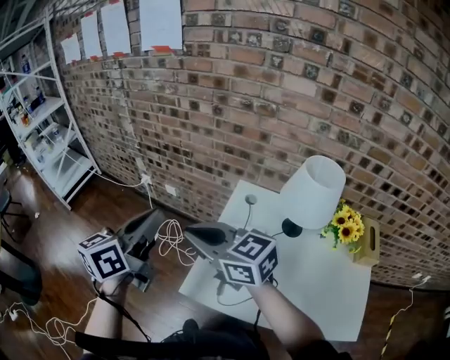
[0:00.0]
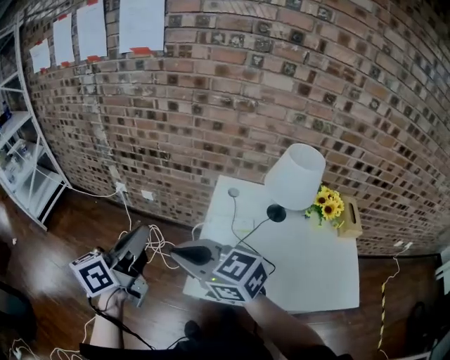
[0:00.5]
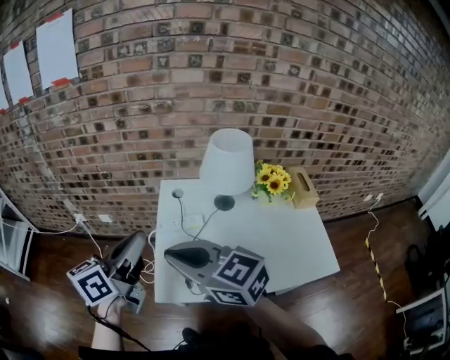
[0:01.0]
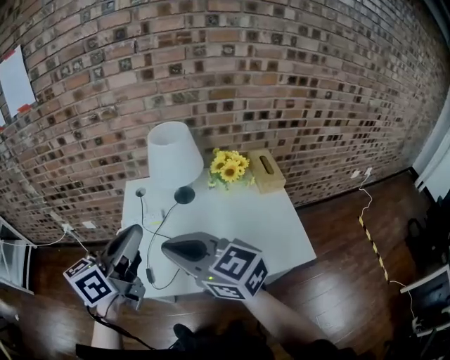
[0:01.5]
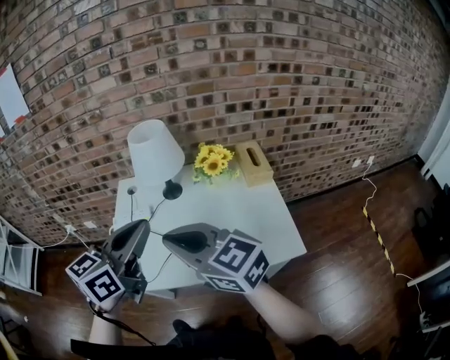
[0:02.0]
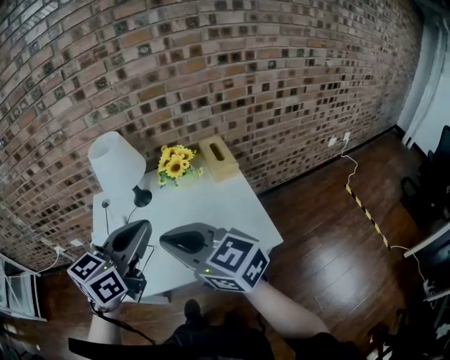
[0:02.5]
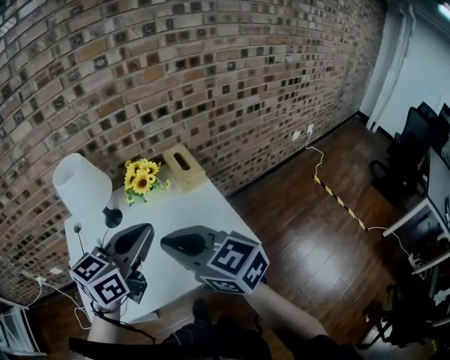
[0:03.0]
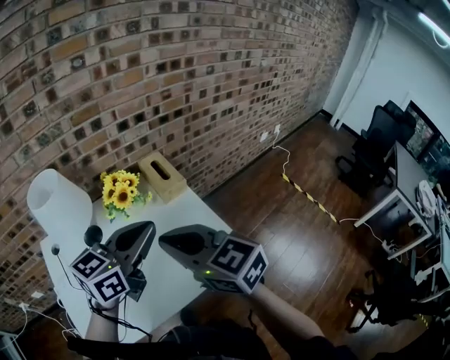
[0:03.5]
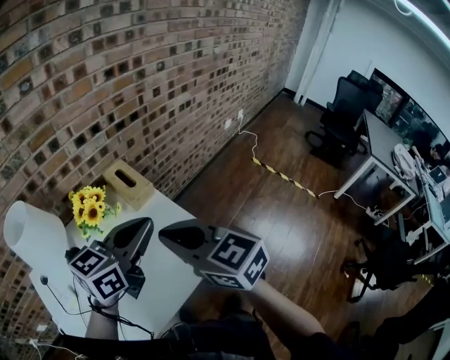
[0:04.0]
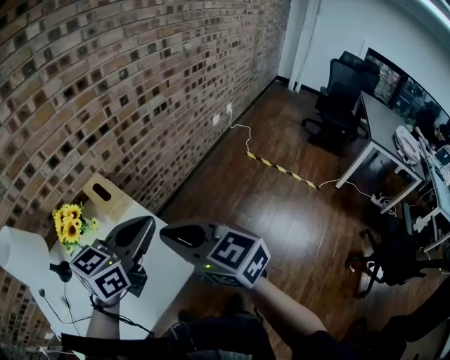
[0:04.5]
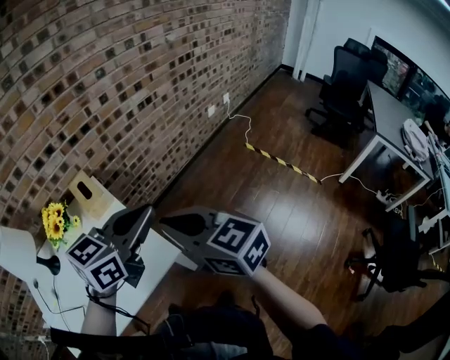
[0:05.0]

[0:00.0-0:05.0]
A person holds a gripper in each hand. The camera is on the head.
0:00.0 to 0:02.5: The pair of grippers is taken roughly 50 cm. The left gripper rotates roughly 50 degrees. Meanwhile the right gripper swivels roughly 40 degrees.
0:02.5 to 0:05.0: The left gripper ends up approximately 40 cm from where it was, and turns by roughly 40 degrees, while the right gripper moves approximately 35 cm, and swivels approximately 40 degrees.

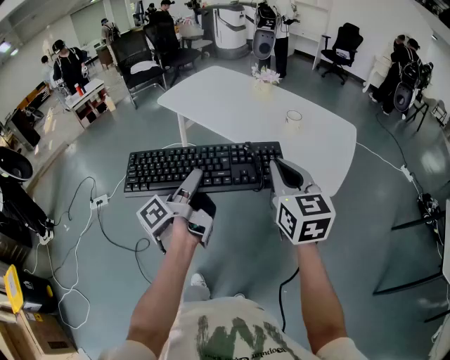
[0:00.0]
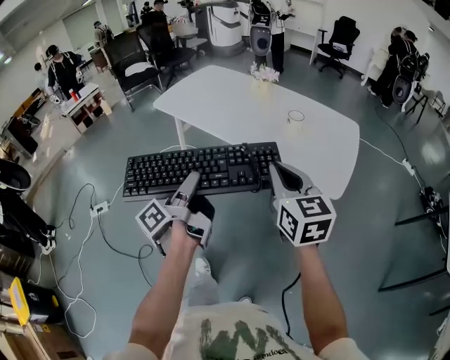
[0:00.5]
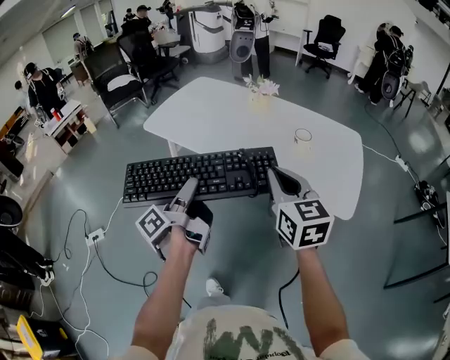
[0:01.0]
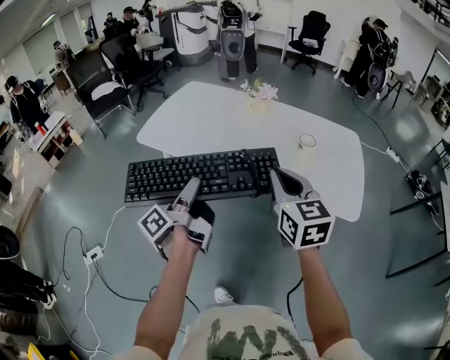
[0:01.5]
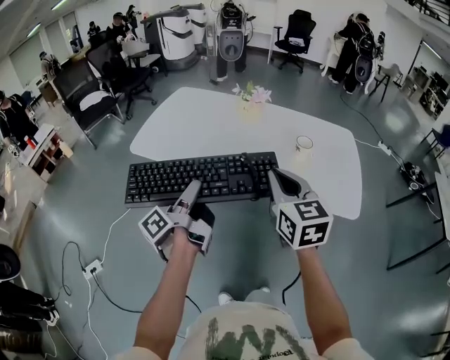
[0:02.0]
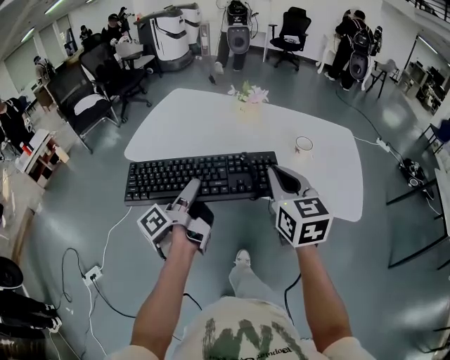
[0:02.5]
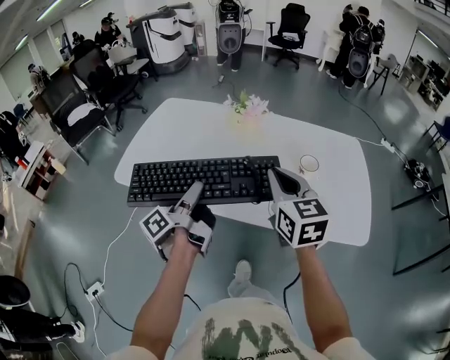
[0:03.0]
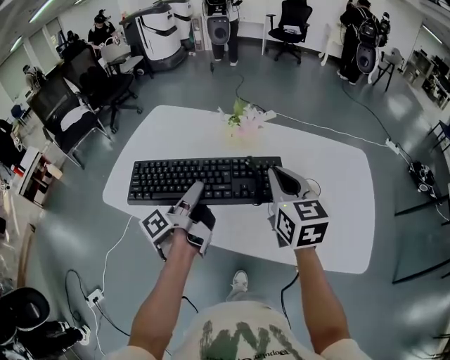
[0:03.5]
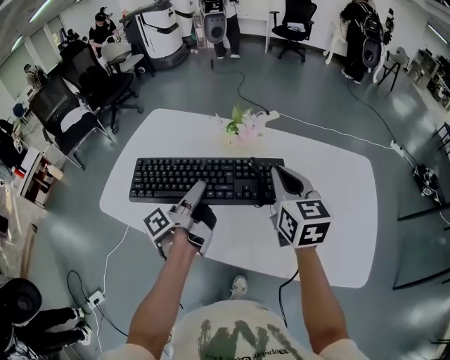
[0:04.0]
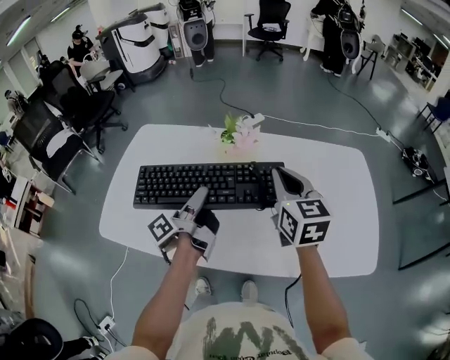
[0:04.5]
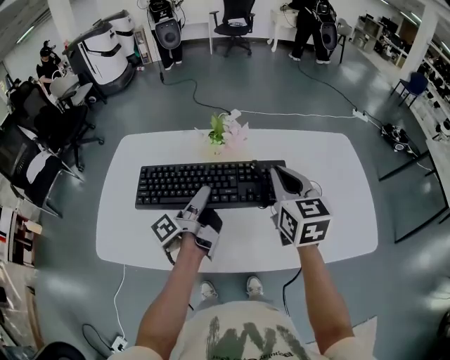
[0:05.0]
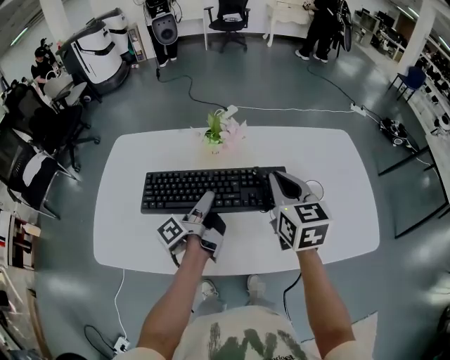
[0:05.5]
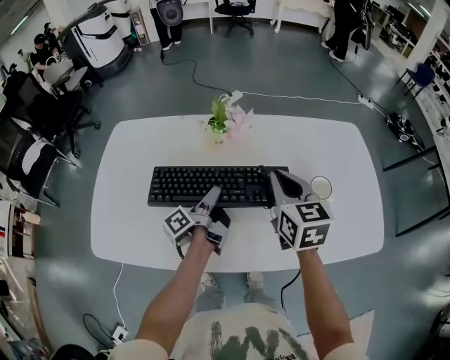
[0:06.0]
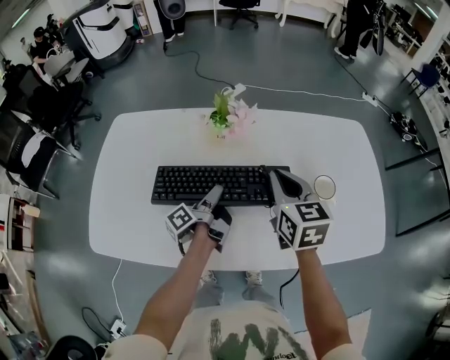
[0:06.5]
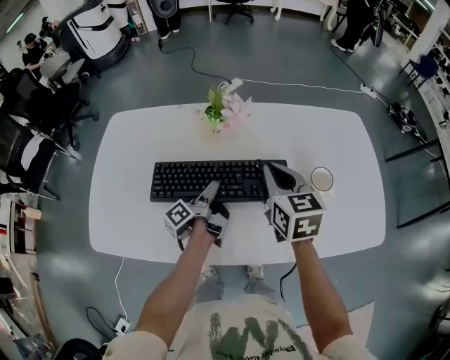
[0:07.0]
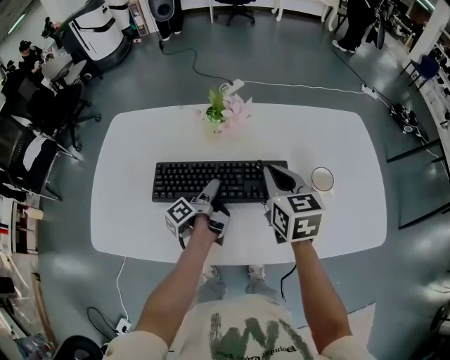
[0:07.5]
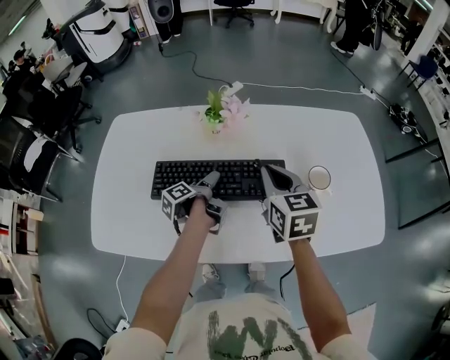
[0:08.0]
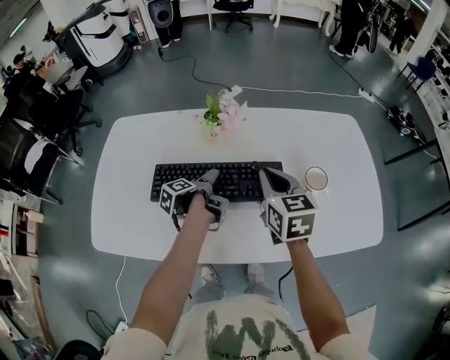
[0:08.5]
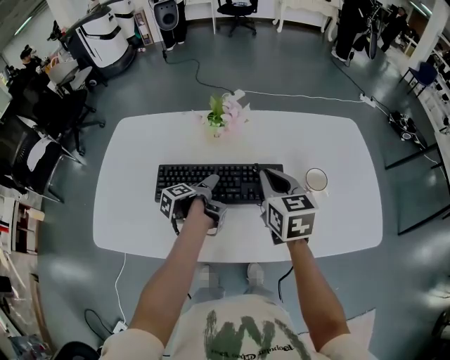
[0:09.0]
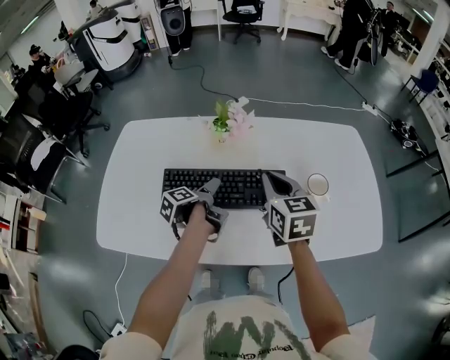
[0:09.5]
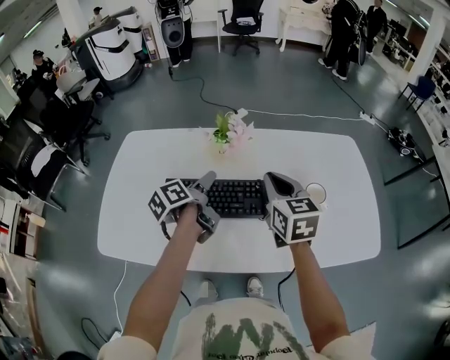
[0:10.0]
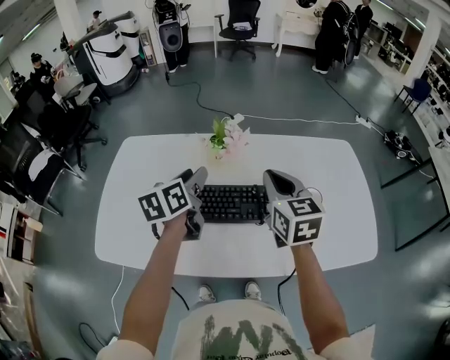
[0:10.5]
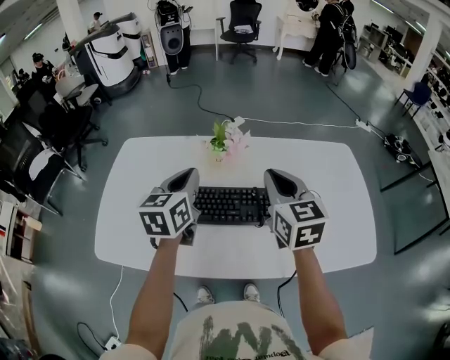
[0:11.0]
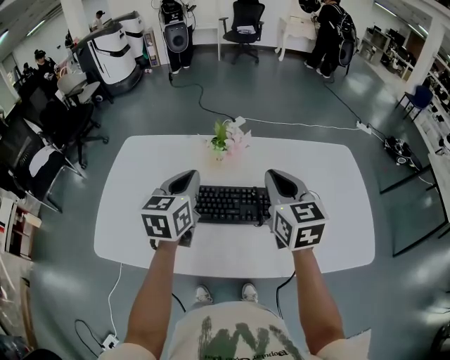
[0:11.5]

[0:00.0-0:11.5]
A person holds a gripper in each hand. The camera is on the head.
0:00.0 to 0:02.0: The right gripper changes place by approximately 25 cm.
0:02.0 to 0:04.0: The right gripper changes place by approximately 30 cm.
0:04.0 to 0:06.0: The right gripper moves downward, roughly 5 cm.
0:09.5 to 0:11.5: The right gripper moves upward, approximately 10 cm.

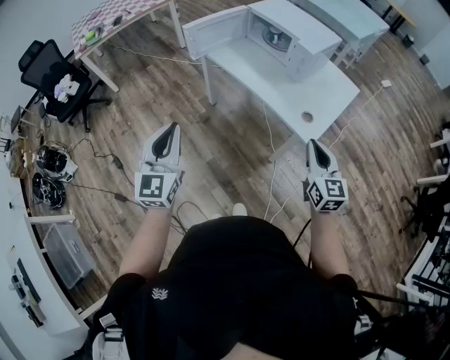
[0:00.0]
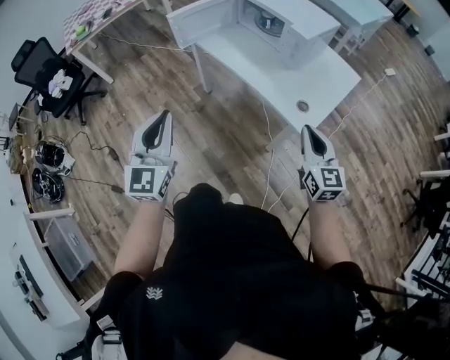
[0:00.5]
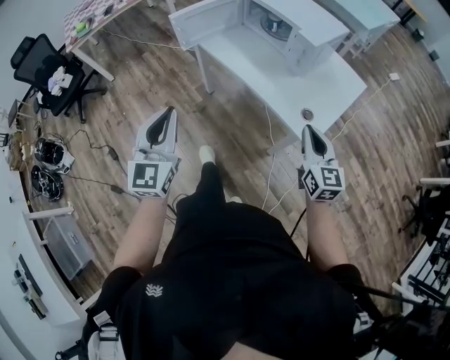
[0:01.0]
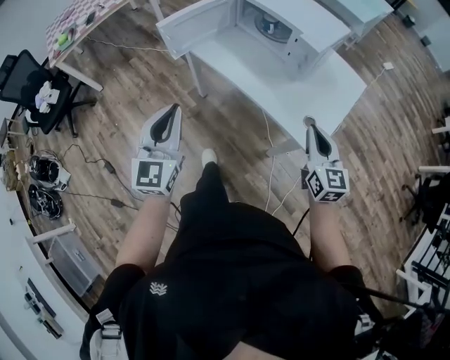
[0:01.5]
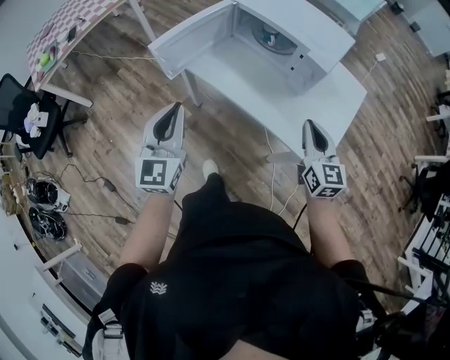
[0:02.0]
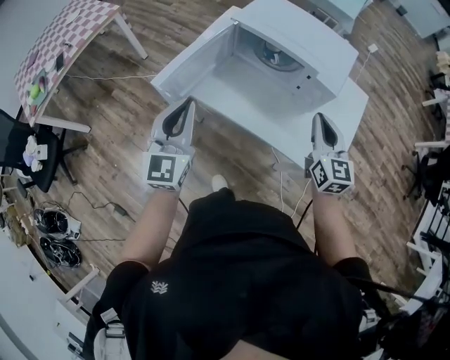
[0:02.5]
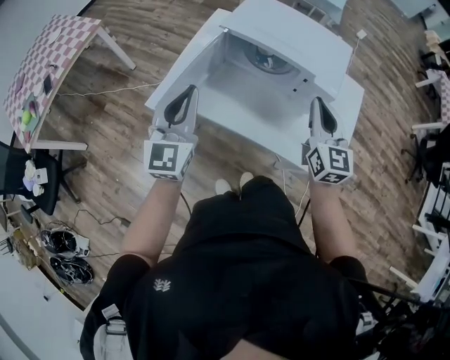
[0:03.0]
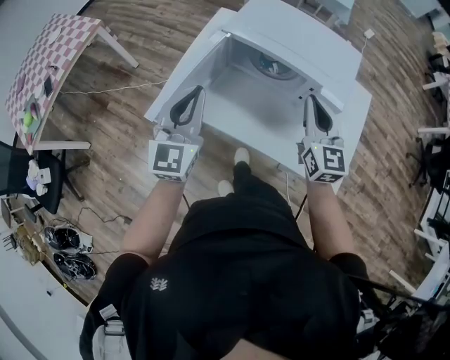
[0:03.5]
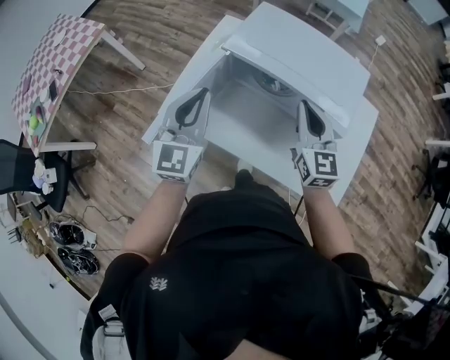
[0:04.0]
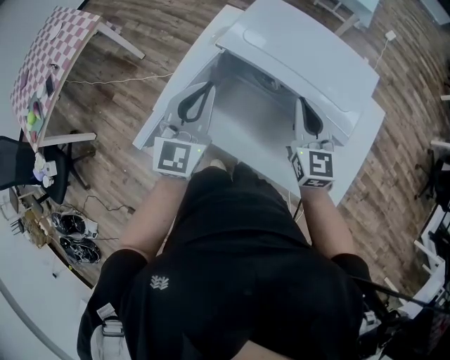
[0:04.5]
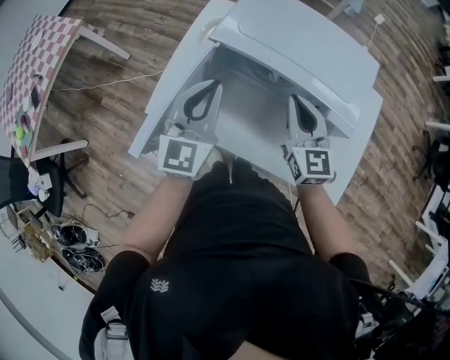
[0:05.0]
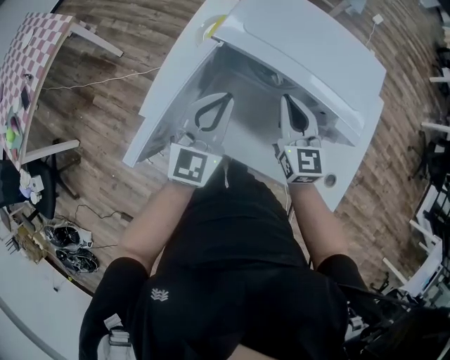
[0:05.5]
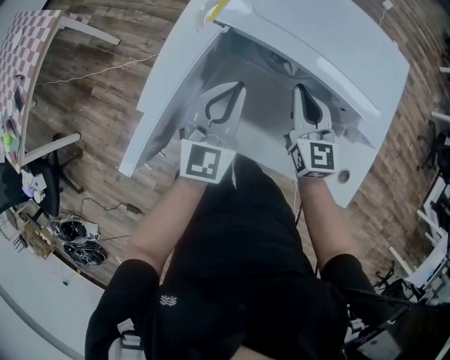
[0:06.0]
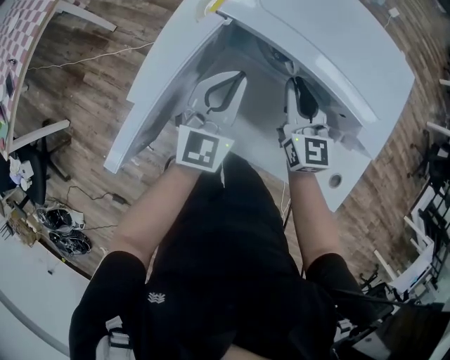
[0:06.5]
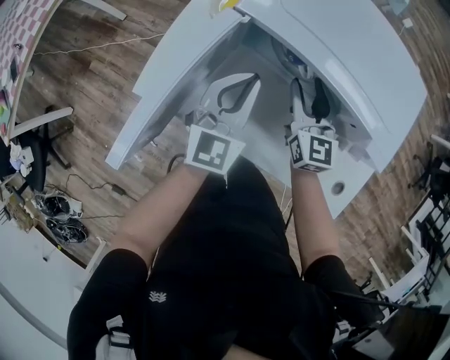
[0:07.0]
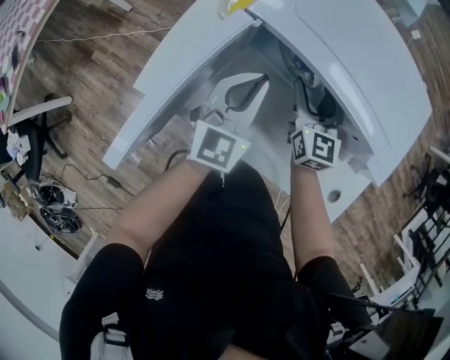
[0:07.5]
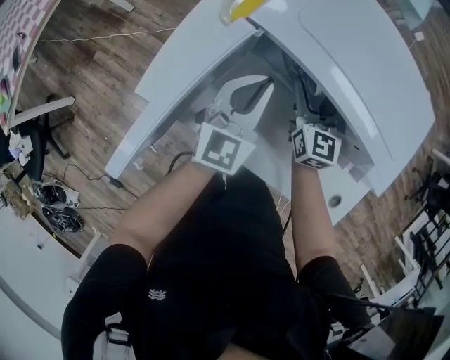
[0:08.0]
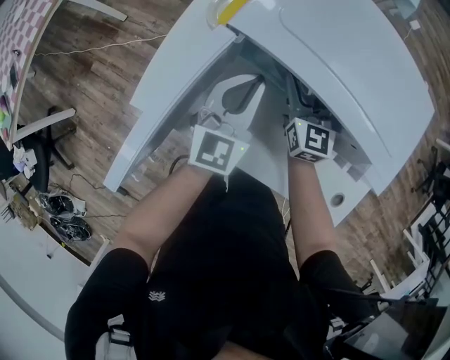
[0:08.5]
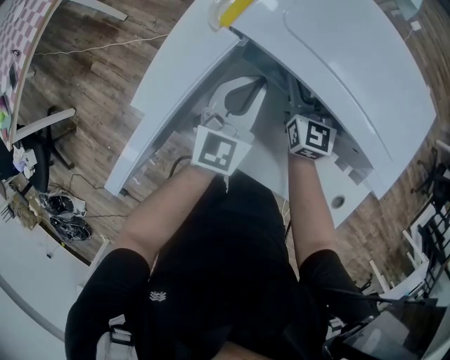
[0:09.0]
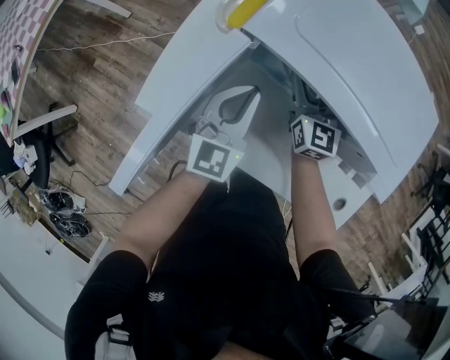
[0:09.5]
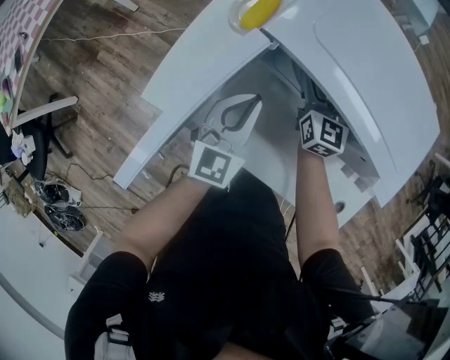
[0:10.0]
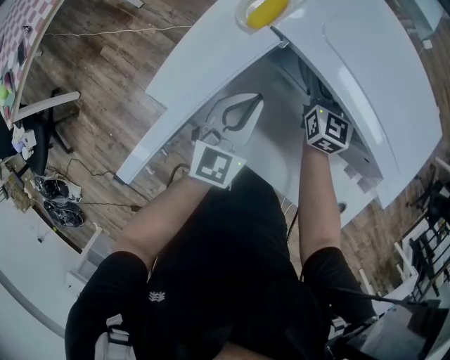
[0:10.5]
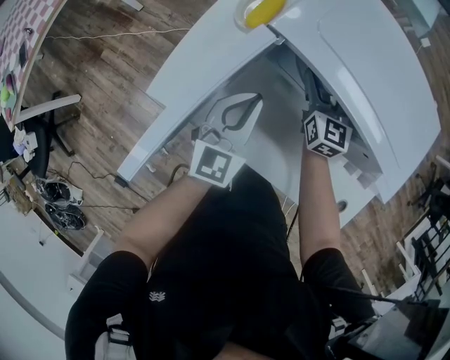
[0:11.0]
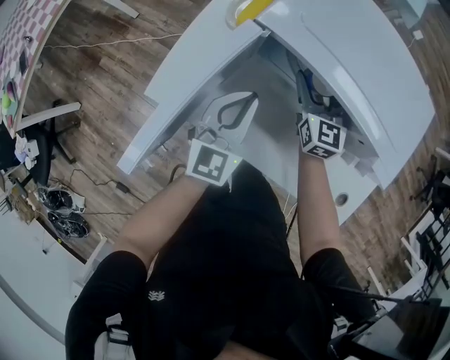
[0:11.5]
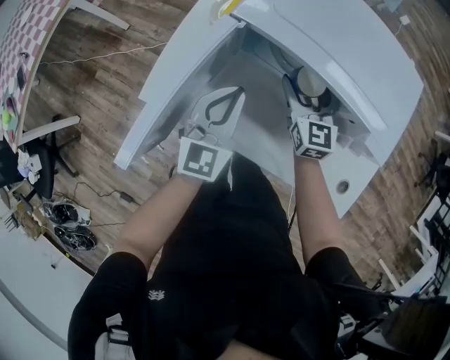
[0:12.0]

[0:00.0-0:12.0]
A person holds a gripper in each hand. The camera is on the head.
0:00.0 to 0:02.0: The two grippers go some 30 cm forward.
0:02.0 to 0:04.0: The two grippers go roughly 30 cm forward.
0:04.0 to 0:06.0: The two grippers go some 15 cm downward and forward.
0:06.0 to 0:08.0: The left gripper is displaced downward and forward by some 10 cm, while the right gripper moves forward and downward, some 10 cm, and opens its fingers.
0:08.0 to 0:10.0: The right gripper shifts by roughly 5 cm; the left gripper ends up some 5 cm from where it was.
0:10.0 to 0:12.0: The right gripper goes approximately 10 cm backward. Meanwhile the left gripper ends up about 5 cm from where it was.
